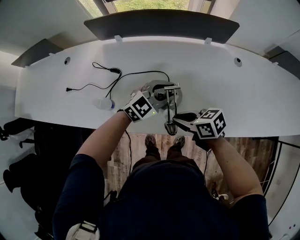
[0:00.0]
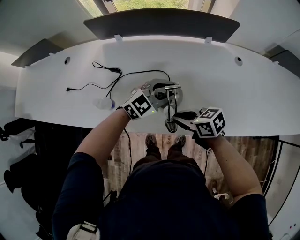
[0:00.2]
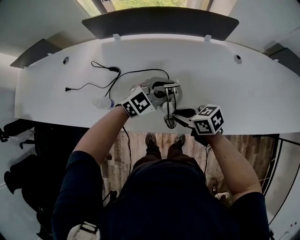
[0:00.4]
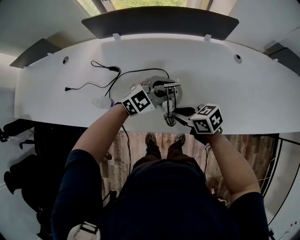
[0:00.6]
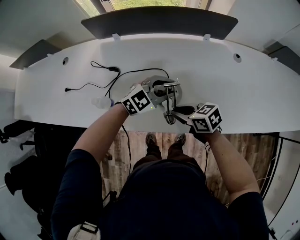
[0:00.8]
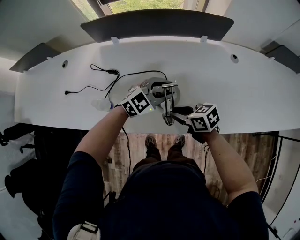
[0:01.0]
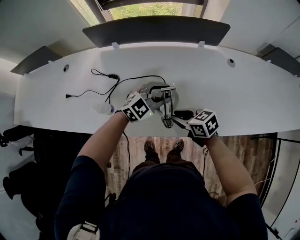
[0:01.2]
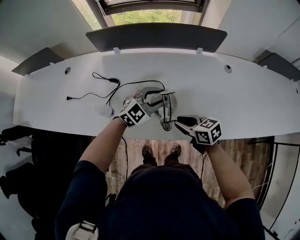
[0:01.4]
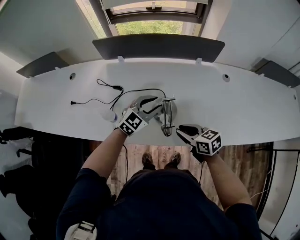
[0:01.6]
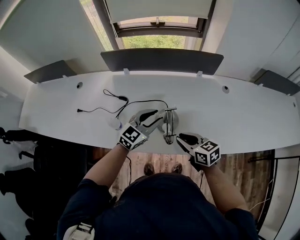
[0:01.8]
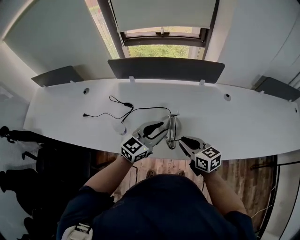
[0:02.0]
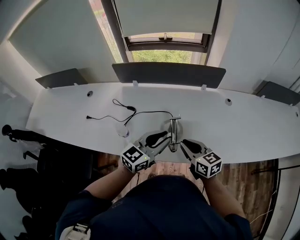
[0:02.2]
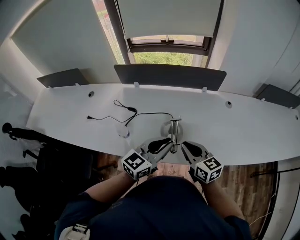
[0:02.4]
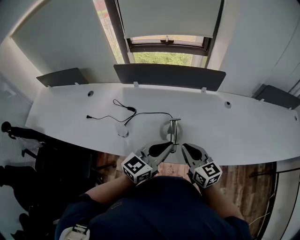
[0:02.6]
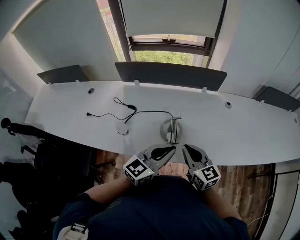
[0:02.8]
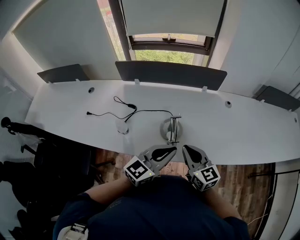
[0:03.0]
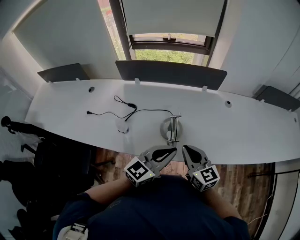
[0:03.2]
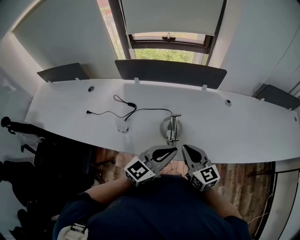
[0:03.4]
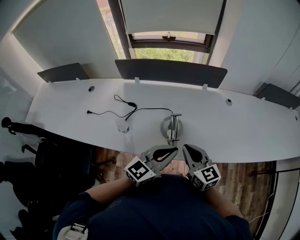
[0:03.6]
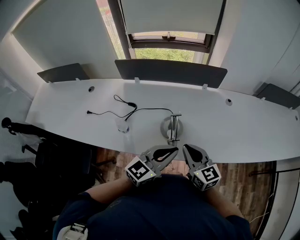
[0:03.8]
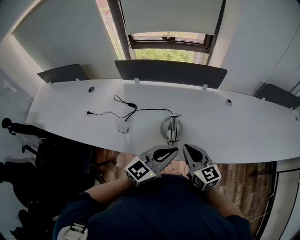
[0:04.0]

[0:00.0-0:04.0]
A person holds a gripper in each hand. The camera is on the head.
0:00.0 to 0:01.4: There are only small adjustments of the grippers.
0:01.4 to 0:02.6: The right gripper moves upward, approximately 15 cm, and swivels approximately 30 degrees. The left gripper shifts approximately 25 cm upward and backward, rotates roughly 40 degrees, and closes.
0:02.6 to 0:04.0: The grippers move only a little.

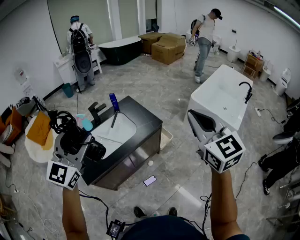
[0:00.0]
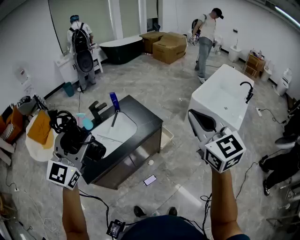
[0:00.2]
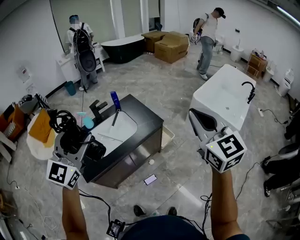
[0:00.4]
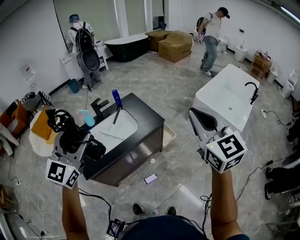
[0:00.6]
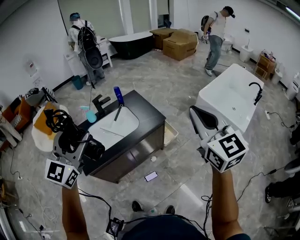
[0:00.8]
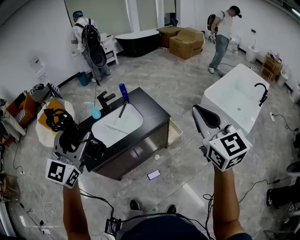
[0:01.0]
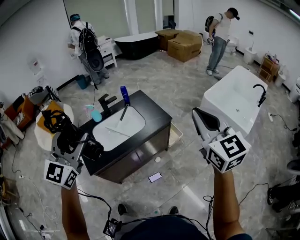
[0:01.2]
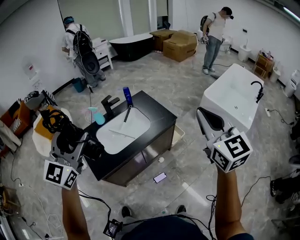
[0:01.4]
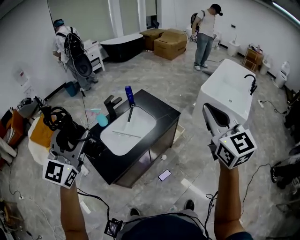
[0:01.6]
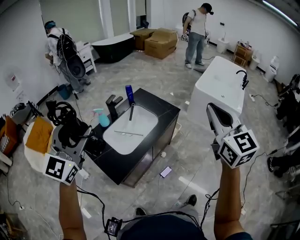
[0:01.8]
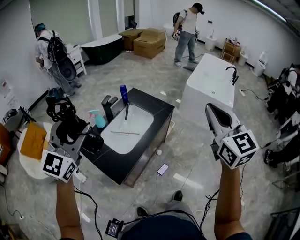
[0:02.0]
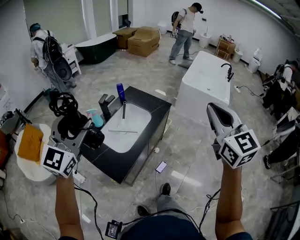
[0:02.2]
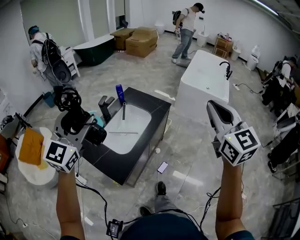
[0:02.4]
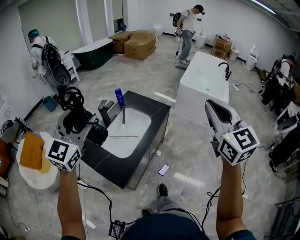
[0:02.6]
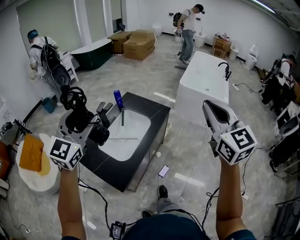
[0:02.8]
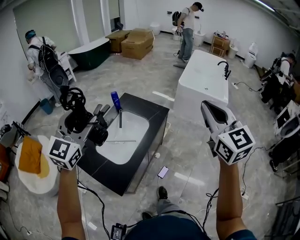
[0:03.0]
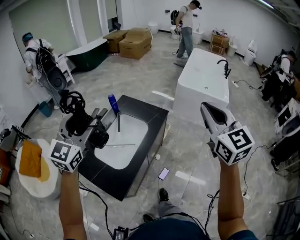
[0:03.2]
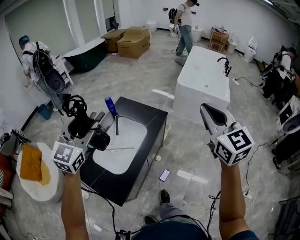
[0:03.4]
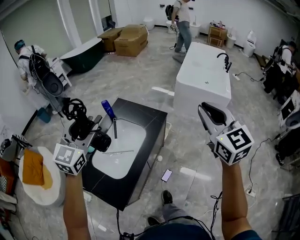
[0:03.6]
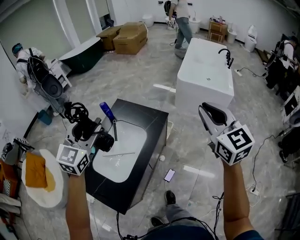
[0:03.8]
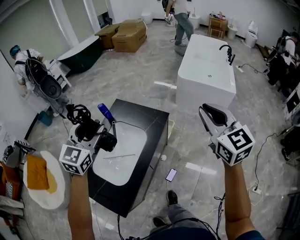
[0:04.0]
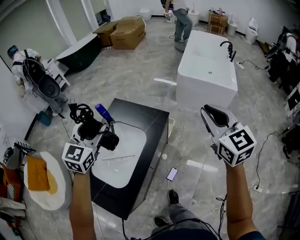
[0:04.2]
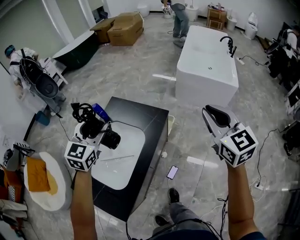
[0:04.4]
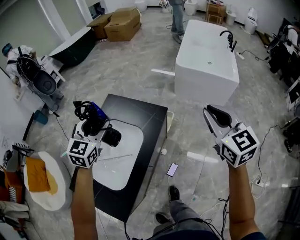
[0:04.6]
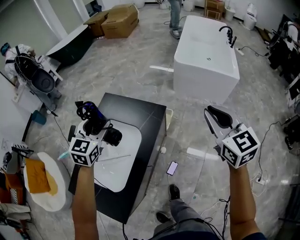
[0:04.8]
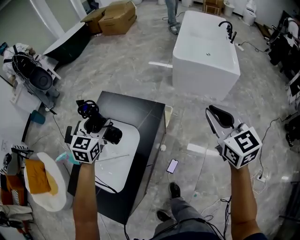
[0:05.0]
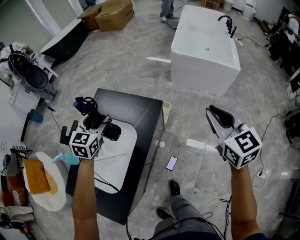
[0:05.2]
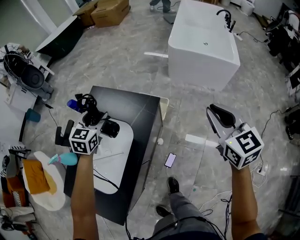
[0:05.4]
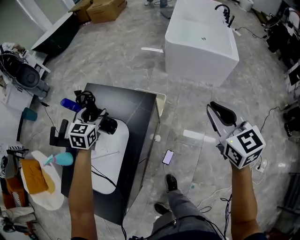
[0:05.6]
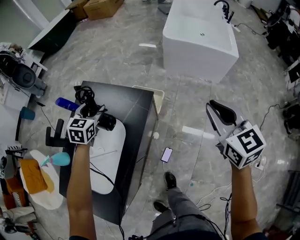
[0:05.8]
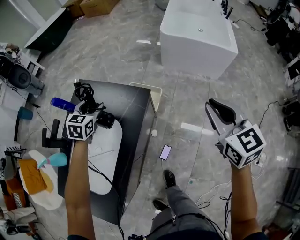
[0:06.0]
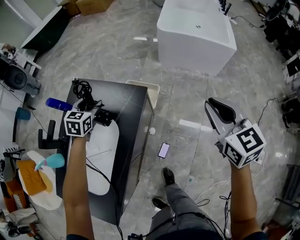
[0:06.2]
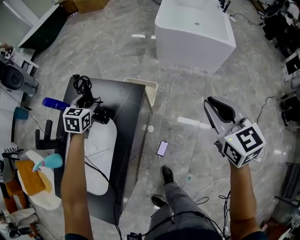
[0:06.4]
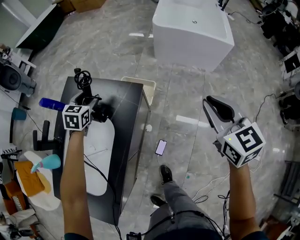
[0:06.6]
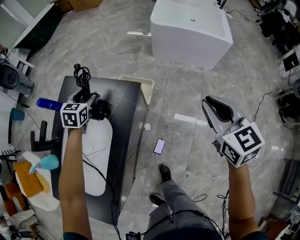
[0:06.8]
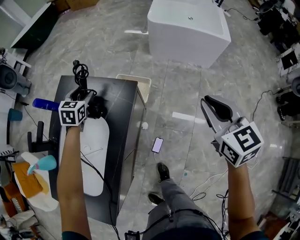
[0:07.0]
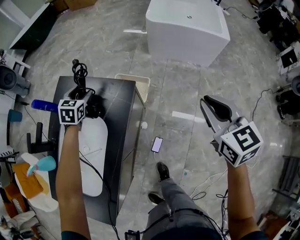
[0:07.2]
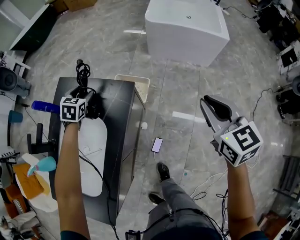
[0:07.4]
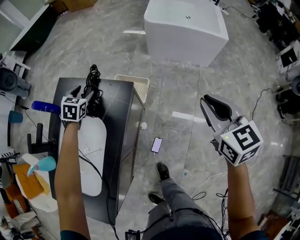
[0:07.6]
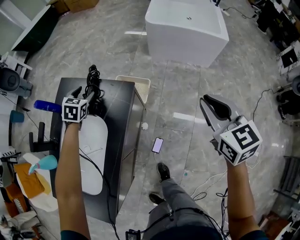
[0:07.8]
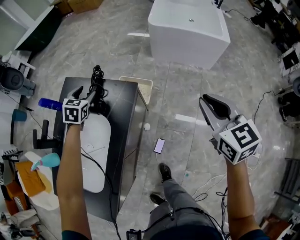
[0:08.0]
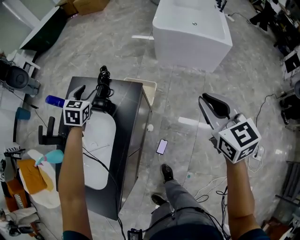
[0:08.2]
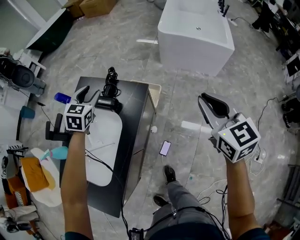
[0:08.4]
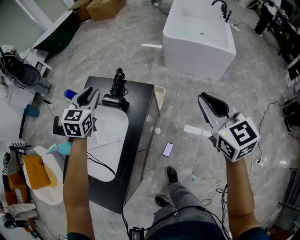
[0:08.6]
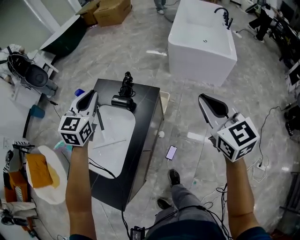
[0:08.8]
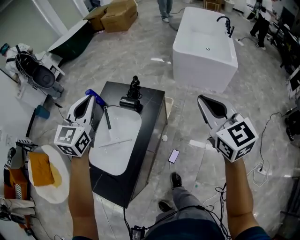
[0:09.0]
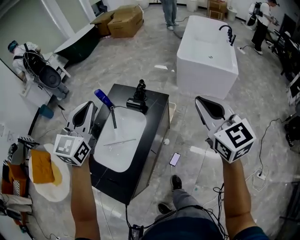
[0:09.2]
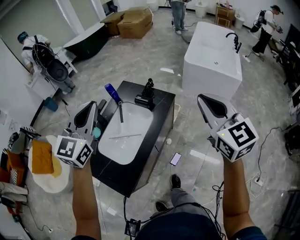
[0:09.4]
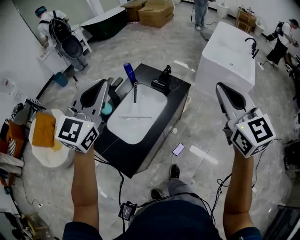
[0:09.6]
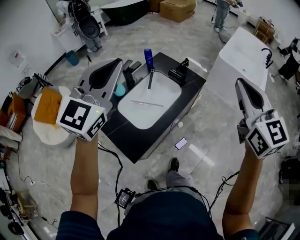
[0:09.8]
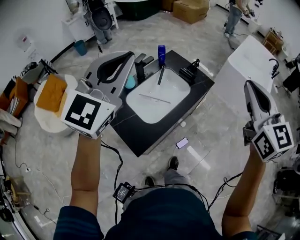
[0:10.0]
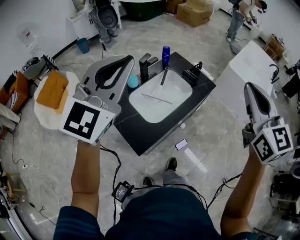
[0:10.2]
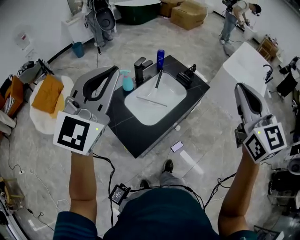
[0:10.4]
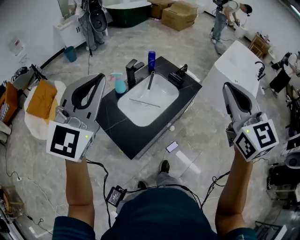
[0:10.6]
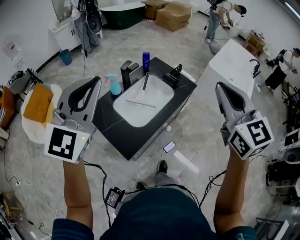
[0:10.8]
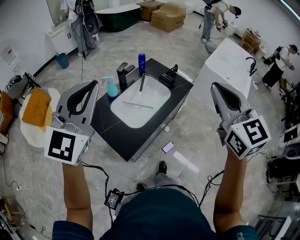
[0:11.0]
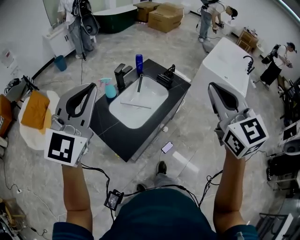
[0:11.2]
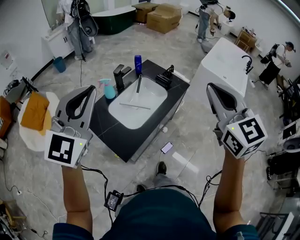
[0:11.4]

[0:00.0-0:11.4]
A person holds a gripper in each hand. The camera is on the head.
0:00.0 to 0:01.4: The right gripper heads to the left, covering roughly 5 cm, while the left gripper heads to the left, covering some 10 cm.
0:01.4 to 0:02.8: The right gripper shifts approximately 20 cm to the left and backward, and swivels some 20 degrees; the left gripper travels to the left and forward by about 20 cm, and turns by approximately 20 degrees.
0:02.8 to 0:04.2: The grippers both shift forward and downward by some 30 cm.
0:04.2 to 0:05.6: The right gripper shifts some 20 cm downward, forward and to the right, while the left gripper is displaced downward and forward by some 35 cm, and changes its angle by roughly 20 degrees.
0:05.6 to 0:07.2: The left gripper is displaced downward and forward by some 15 cm. Meanwhile the right gripper is displaced downward by about 10 cm.
0:07.2 to 0:08.6: The left gripper travels upward and backward by some 25 cm, and closes. The right gripper is displaced upward and to the left by approximately 15 cm.
0:08.6 to 0:10.0: The right gripper is displaced upward, to the left and backward by approximately 40 cm, and changes its angle by some 30 degrees. The left gripper goes approximately 60 cm backward, upward and to the left, rotates about 30 degrees, and closes up.
0:10.0 to 0:11.4: The grippers both shift backward and to the left by some 10 cm.

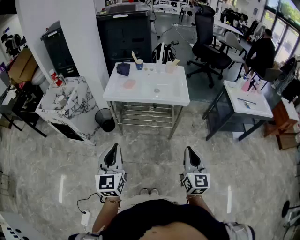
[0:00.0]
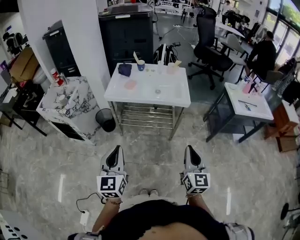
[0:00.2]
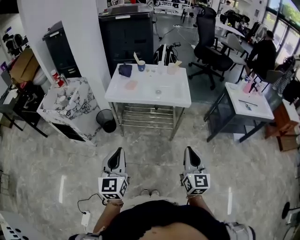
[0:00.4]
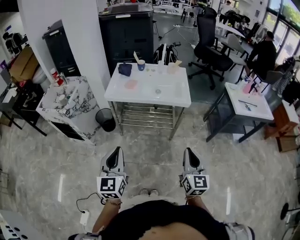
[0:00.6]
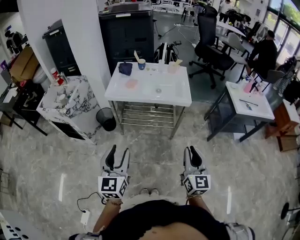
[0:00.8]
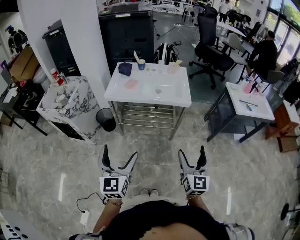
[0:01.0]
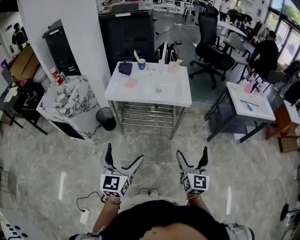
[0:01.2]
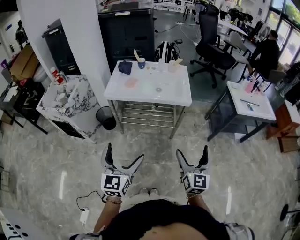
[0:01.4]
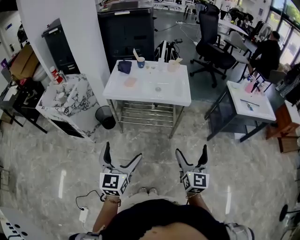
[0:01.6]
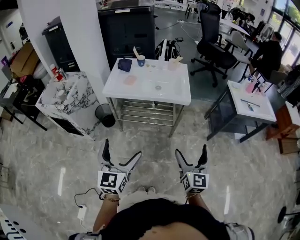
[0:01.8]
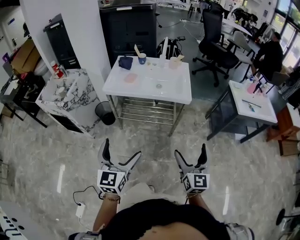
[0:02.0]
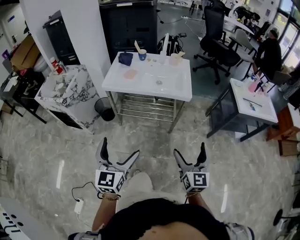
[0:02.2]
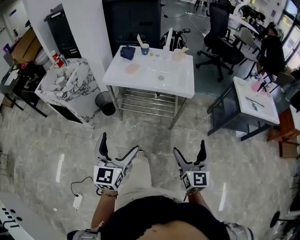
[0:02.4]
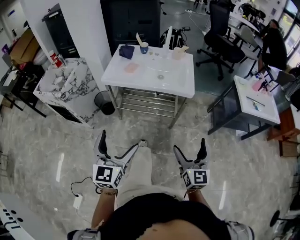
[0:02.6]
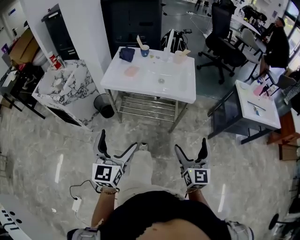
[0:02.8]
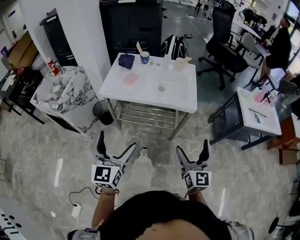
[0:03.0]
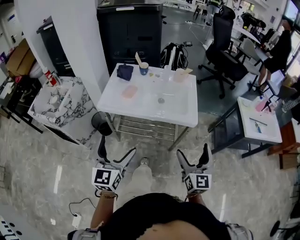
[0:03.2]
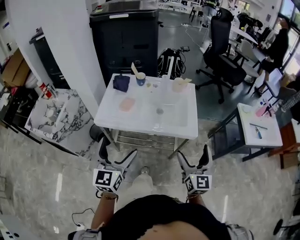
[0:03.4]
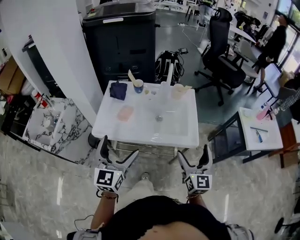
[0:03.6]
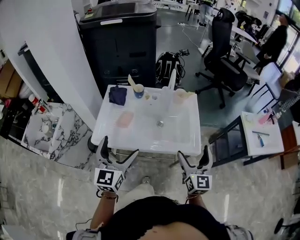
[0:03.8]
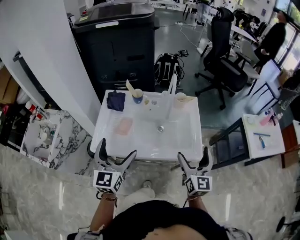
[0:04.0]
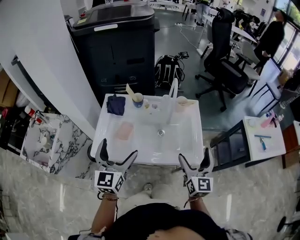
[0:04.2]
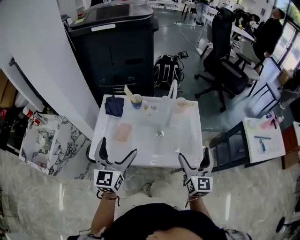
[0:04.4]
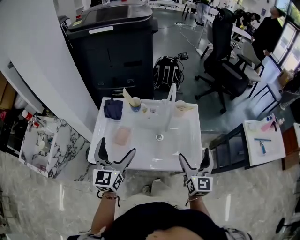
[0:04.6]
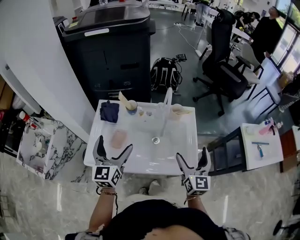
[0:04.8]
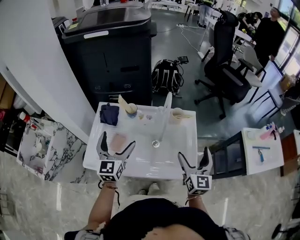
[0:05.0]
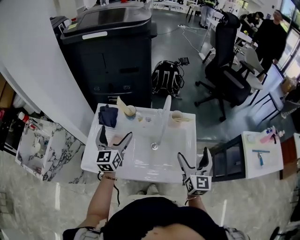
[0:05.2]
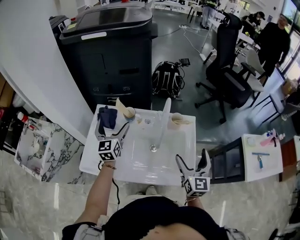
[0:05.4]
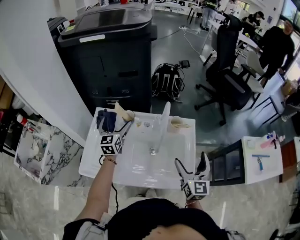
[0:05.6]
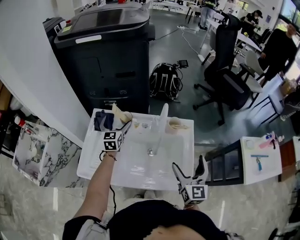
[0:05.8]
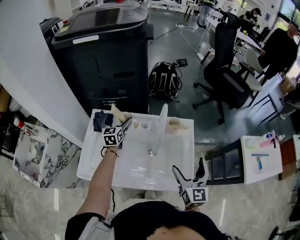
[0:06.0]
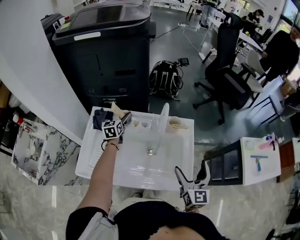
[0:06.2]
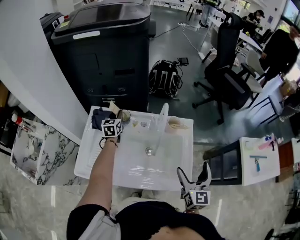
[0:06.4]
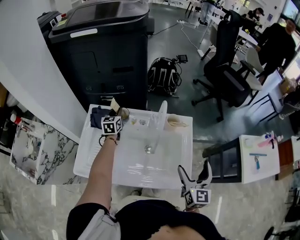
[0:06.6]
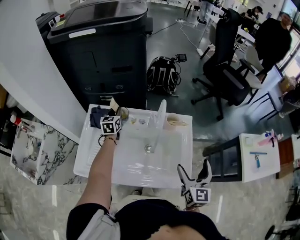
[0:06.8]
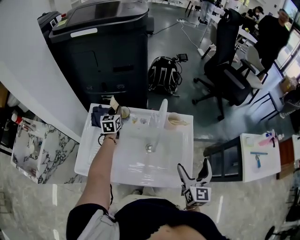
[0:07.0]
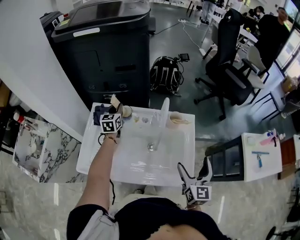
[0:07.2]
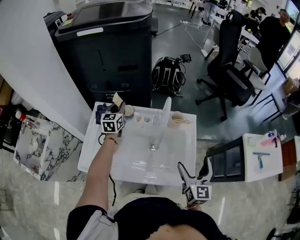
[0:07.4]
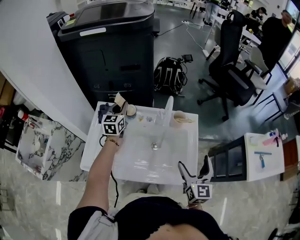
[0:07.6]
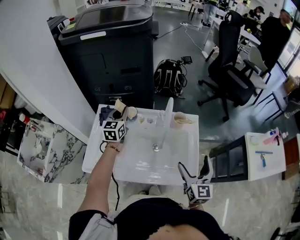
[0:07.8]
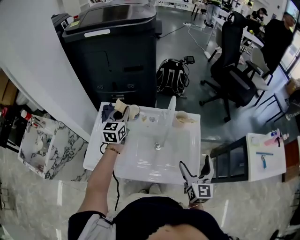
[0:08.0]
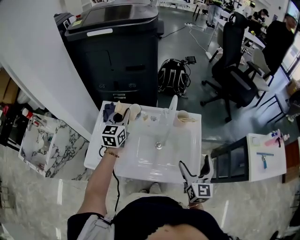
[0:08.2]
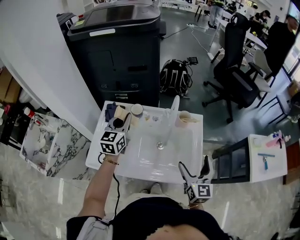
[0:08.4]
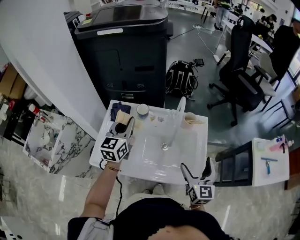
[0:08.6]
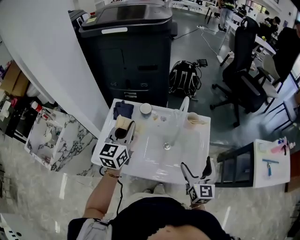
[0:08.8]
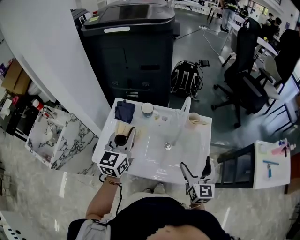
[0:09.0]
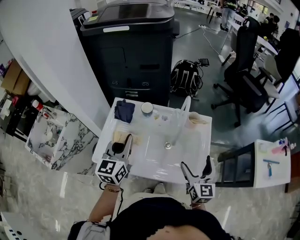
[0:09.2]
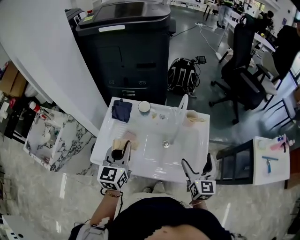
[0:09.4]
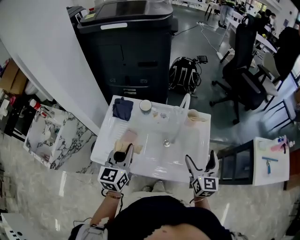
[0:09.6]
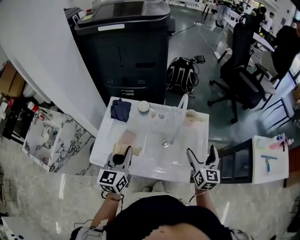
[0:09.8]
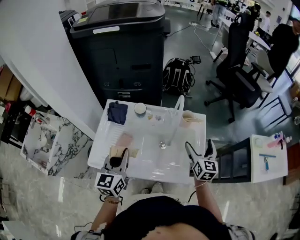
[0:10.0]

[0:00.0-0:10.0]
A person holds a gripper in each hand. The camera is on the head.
0:00.0 to 0:01.4: The right gripper opens up, while the left gripper moves some 5 cm, and opens up.
0:01.4 to 0:02.8: The two grippers go some 5 cm forward.
0:02.8 to 0:04.2: Both grippers move forward, some 40 cm.
0:04.2 to 0:05.8: The right gripper goes approximately 15 cm forward. The left gripper moves forward, some 35 cm.
0:05.8 to 0:07.2: The left gripper shifts some 5 cm forward, and closes up.
0:07.2 to 0:08.6: The left gripper shifts some 20 cm backward and upward.
0:08.6 to 0:10.0: The left gripper moves backward, roughly 15 cm. The right gripper heads forward, covering approximately 10 cm.
